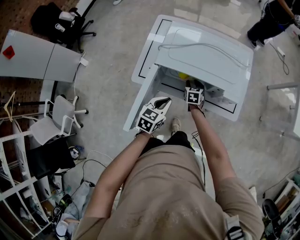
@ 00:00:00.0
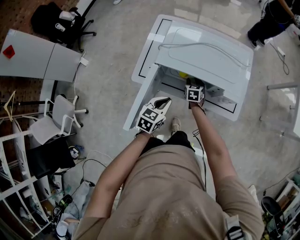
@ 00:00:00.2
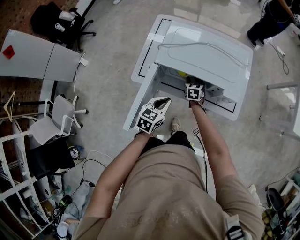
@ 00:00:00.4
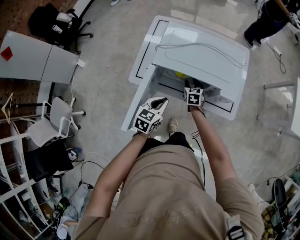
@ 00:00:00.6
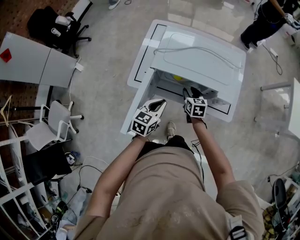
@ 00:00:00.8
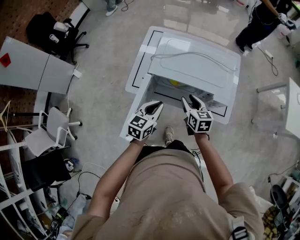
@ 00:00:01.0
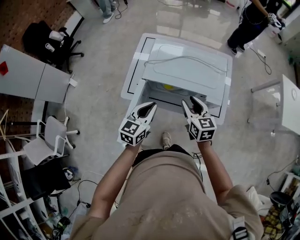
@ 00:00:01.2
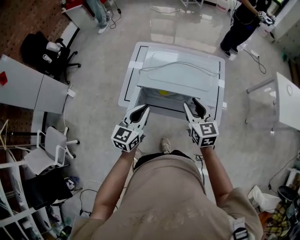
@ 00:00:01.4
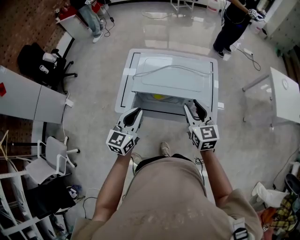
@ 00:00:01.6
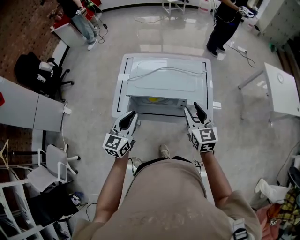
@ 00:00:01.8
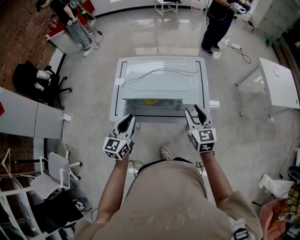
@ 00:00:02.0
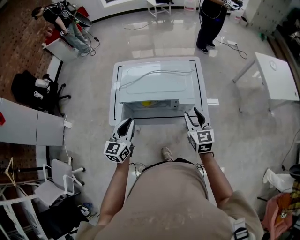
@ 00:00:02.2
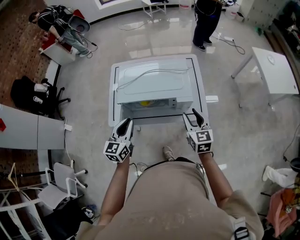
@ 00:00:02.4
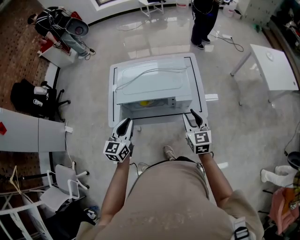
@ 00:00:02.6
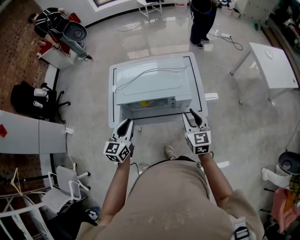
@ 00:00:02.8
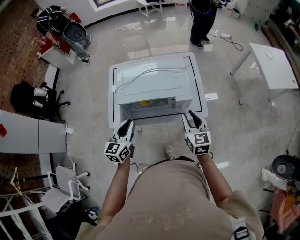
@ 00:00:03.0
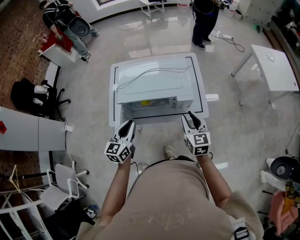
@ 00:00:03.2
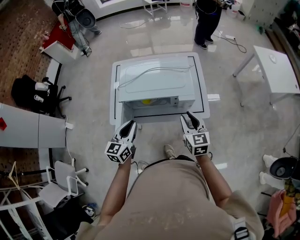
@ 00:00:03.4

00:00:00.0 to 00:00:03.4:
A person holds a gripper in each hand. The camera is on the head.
00:00:00.0 to 00:00:01.6: The left gripper heads upward, covering roughly 20 cm, and swivels about 30 degrees. Meanwhile the right gripper is displaced upward by approximately 35 cm, and turns by approximately 30 degrees.
00:00:01.6 to 00:00:03.4: The right gripper shifts about 10 cm to the right, downward and backward.

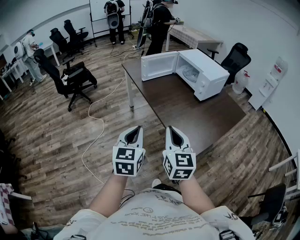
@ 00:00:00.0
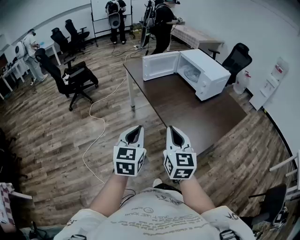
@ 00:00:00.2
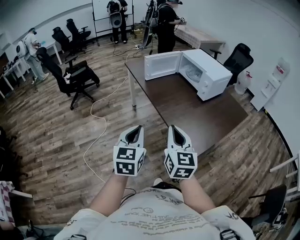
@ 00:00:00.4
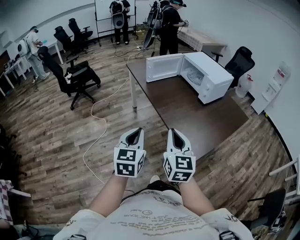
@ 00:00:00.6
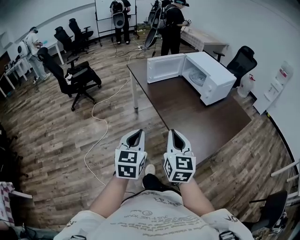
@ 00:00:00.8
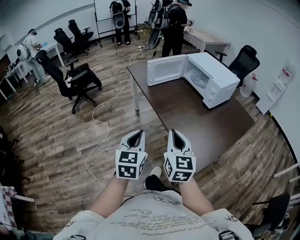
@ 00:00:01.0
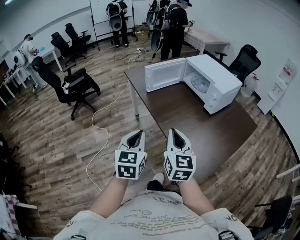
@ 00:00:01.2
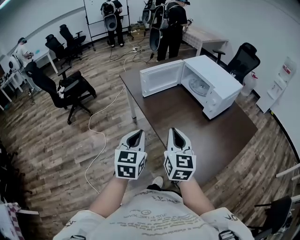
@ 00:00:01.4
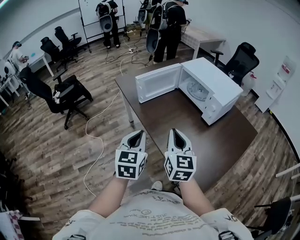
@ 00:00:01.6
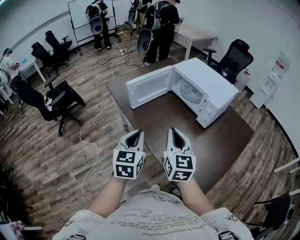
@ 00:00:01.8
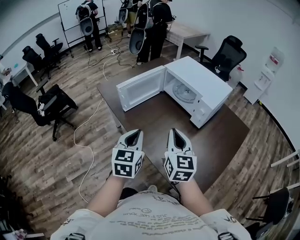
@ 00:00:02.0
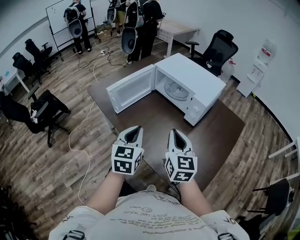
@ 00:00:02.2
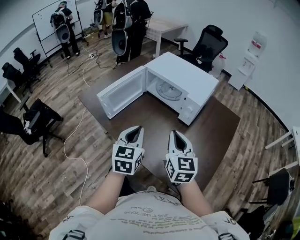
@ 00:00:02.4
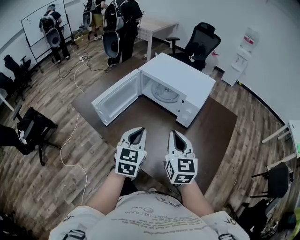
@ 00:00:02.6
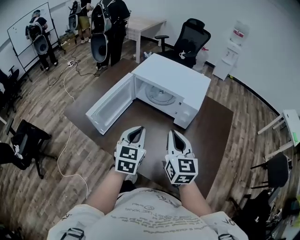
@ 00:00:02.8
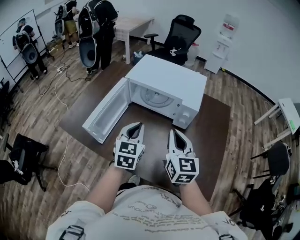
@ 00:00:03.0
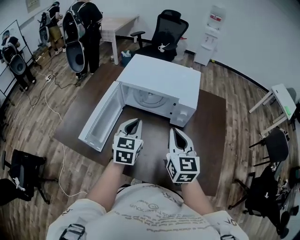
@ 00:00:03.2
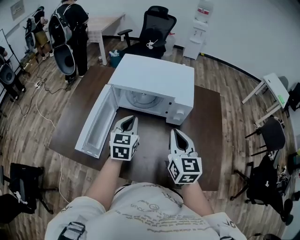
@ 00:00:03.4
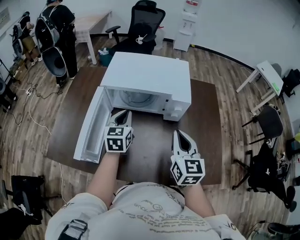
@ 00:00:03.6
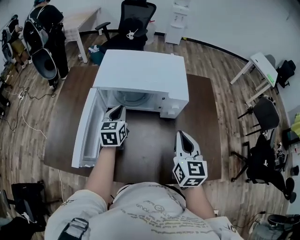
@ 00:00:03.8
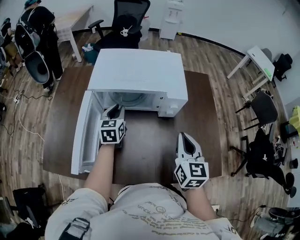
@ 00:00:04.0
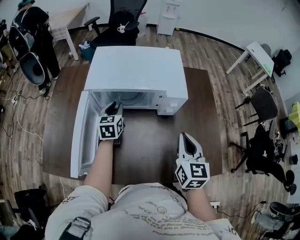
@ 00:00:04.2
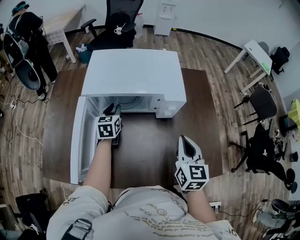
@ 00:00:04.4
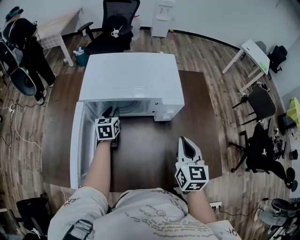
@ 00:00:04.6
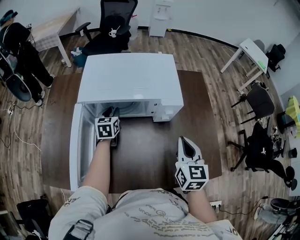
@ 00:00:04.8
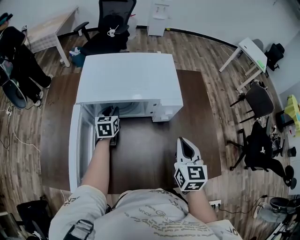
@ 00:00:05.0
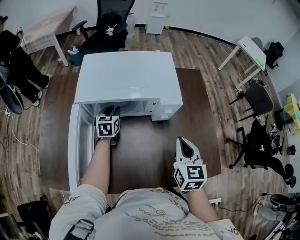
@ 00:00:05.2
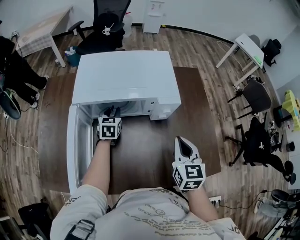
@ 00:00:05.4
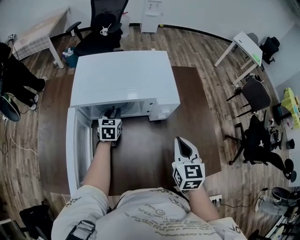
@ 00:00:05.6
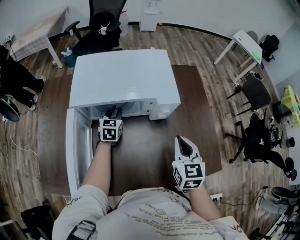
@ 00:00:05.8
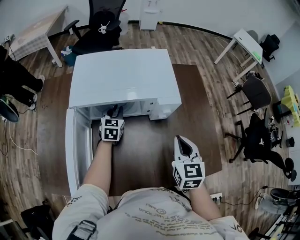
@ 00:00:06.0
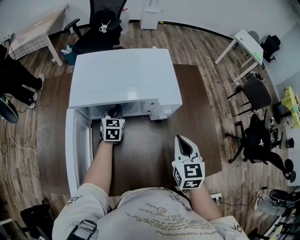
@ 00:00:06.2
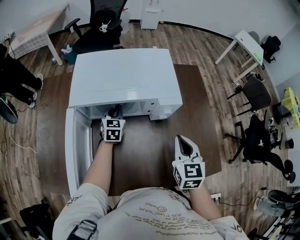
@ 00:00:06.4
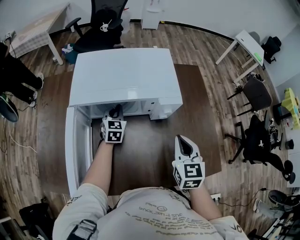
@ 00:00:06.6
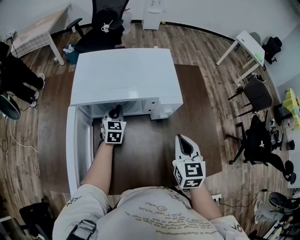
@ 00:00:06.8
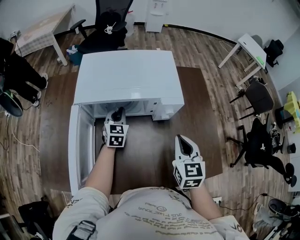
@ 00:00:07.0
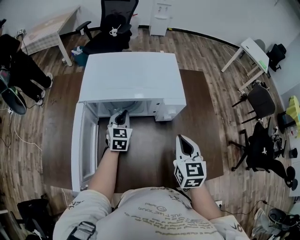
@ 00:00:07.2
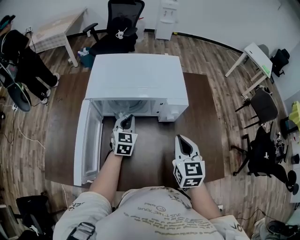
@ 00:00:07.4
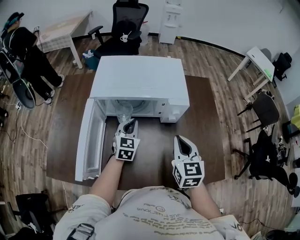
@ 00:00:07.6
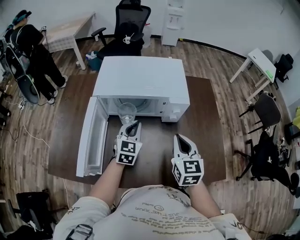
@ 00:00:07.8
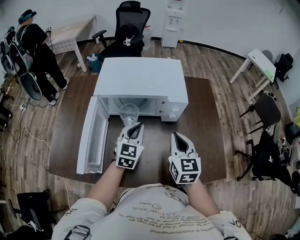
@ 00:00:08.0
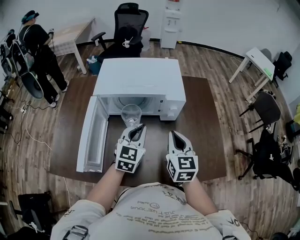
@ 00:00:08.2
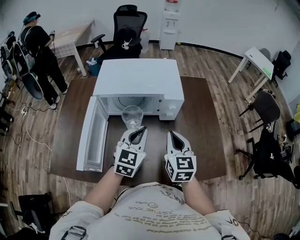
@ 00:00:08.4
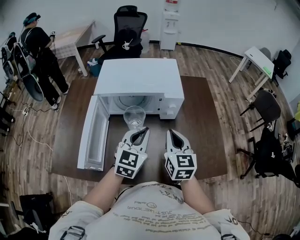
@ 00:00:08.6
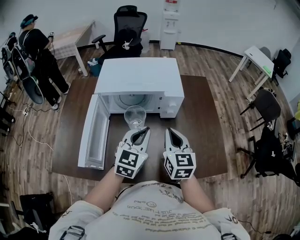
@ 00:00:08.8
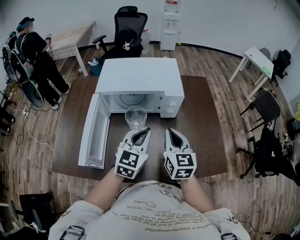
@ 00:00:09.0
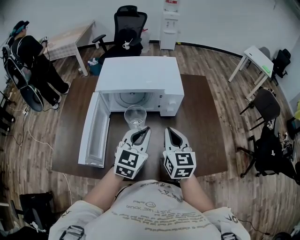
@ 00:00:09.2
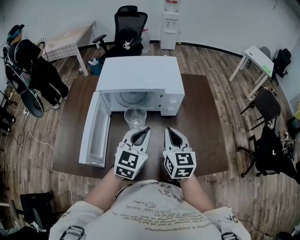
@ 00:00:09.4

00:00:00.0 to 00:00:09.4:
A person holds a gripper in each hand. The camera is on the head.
00:00:00.0 to 00:00:01.6: Both grippers travel together forward, roughly 25 cm.
00:00:01.6 to 00:00:03.2: The left gripper shifts by roughly 35 cm, and turns by approximately 40 degrees. The right gripper ends up approximately 20 cm from where it was, and changes its angle by approximately 40 degrees.
00:00:03.2 to 00:00:04.8: The right gripper moves to the right and downward, roughly 10 cm, and turns by approximately 30 degrees, while the left gripper heads forward and downward, covering approximately 25 cm, and opens its fingers.
00:00:04.8 to 00:00:06.2: The left gripper shifts by about 5 cm, and closes up.
00:00:06.2 to 00:00:07.8: The left gripper goes some 15 cm backward and upward.
00:00:07.8 to 00:00:09.4: The left gripper goes roughly 15 cm backward, upward and to the right.

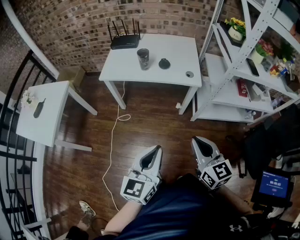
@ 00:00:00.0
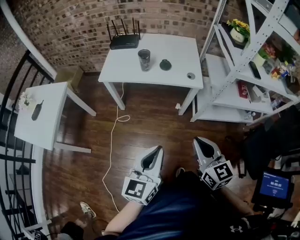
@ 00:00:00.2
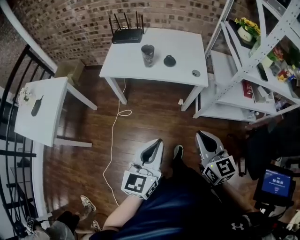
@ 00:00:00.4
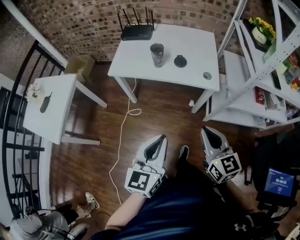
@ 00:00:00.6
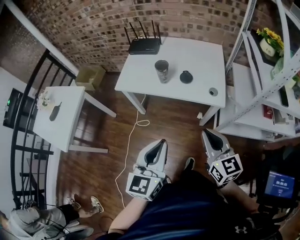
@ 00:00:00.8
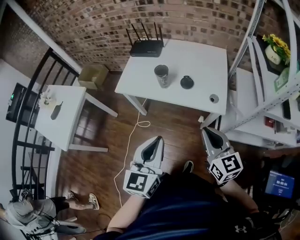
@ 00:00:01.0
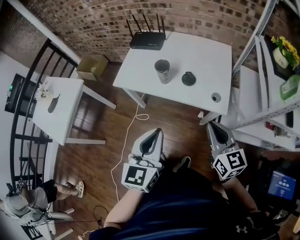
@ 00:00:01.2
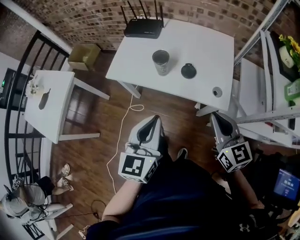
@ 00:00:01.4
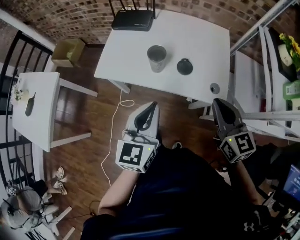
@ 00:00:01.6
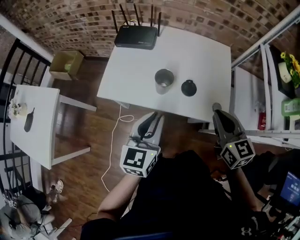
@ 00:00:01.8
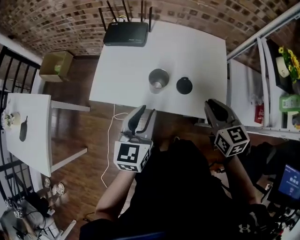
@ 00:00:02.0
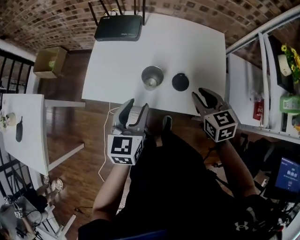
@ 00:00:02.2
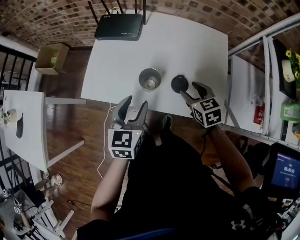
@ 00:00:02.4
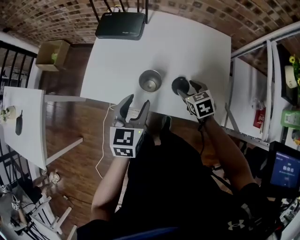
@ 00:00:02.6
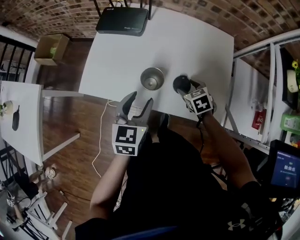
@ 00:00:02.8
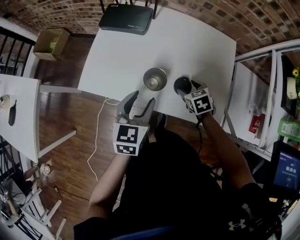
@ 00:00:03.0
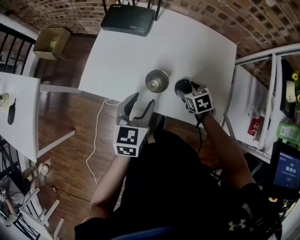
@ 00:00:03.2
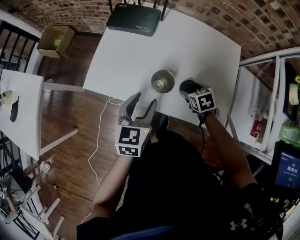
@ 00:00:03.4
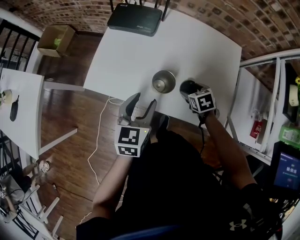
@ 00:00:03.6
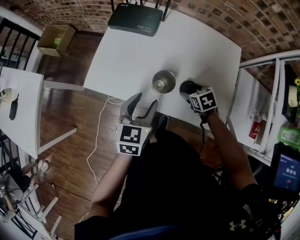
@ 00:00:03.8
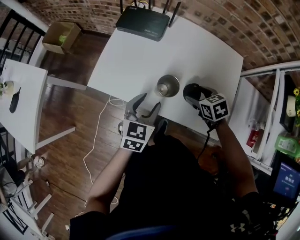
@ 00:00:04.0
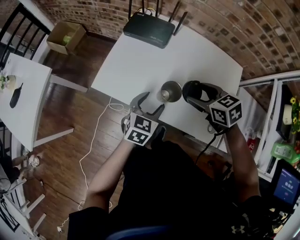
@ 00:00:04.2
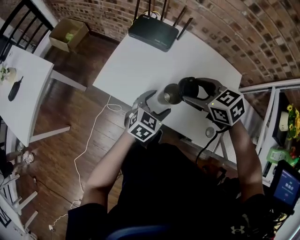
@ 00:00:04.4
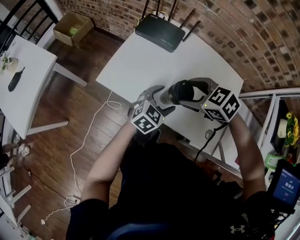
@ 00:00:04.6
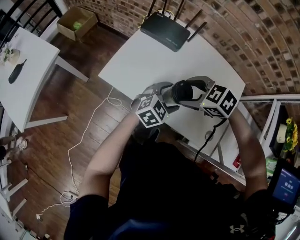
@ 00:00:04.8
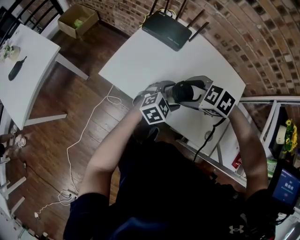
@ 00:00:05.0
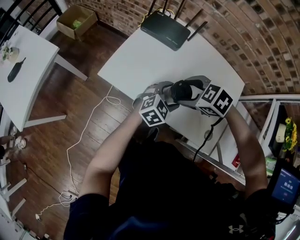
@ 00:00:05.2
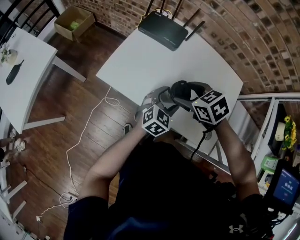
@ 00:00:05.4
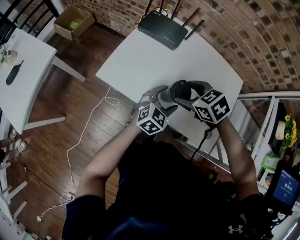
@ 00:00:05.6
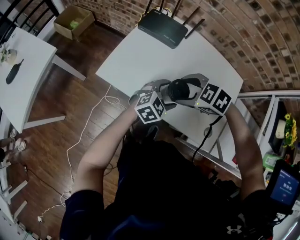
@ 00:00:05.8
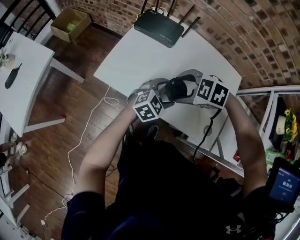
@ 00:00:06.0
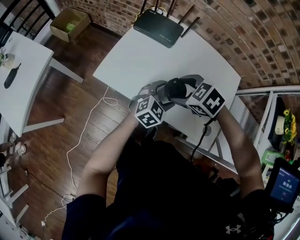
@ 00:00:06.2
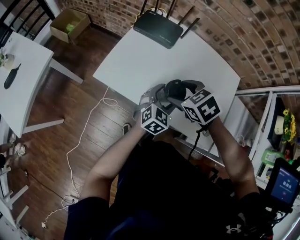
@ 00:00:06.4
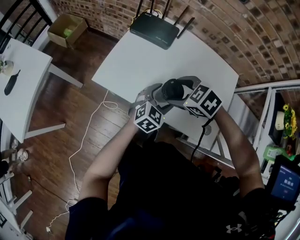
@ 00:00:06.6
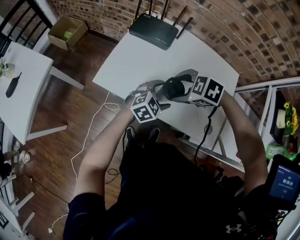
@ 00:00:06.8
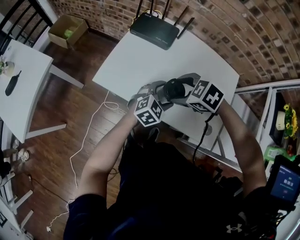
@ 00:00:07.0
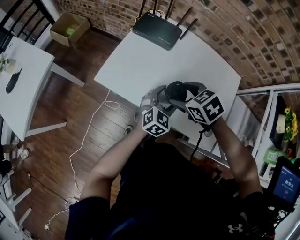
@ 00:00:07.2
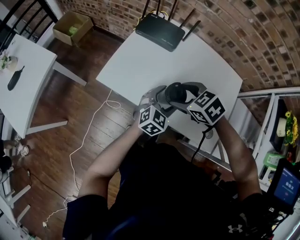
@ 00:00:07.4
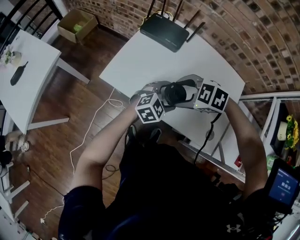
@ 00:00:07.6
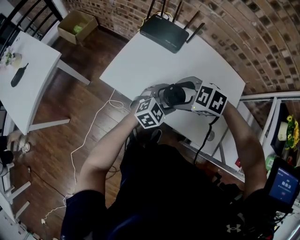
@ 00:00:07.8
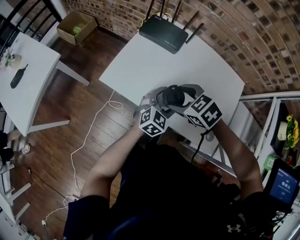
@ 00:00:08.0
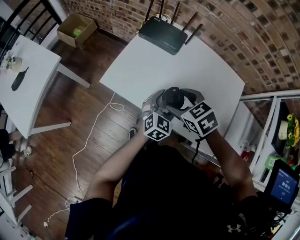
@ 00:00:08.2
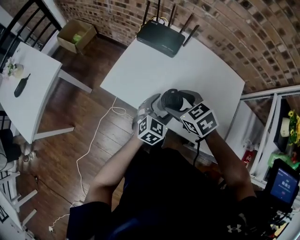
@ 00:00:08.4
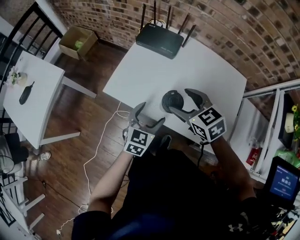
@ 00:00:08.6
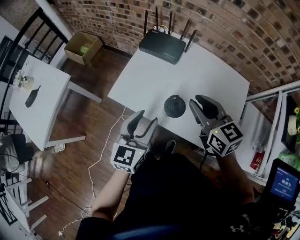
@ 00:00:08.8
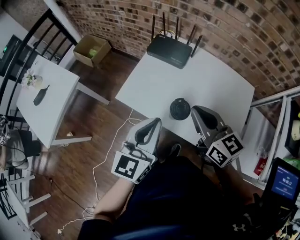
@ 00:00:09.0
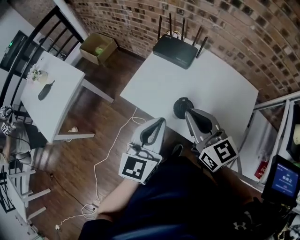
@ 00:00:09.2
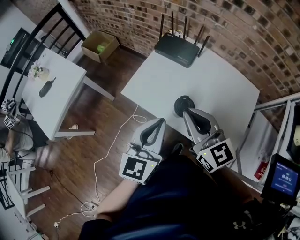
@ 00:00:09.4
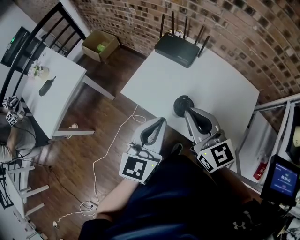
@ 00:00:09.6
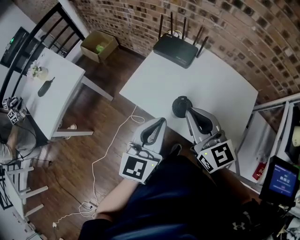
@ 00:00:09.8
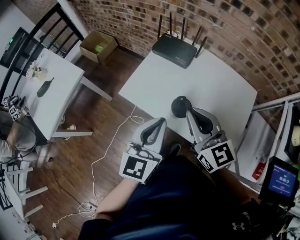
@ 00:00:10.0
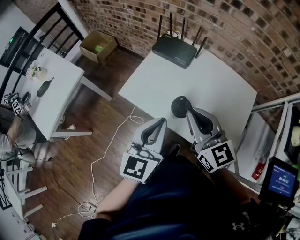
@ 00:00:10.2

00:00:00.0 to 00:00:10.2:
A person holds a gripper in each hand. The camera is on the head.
00:00:00.0 to 00:00:01.4: Both grippers travel together forward, about 35 cm.
00:00:01.4 to 00:00:03.0: The right gripper travels downward and forward by some 40 cm, tilts its fingers approximately 50 degrees downward, and opens up; the left gripper moves forward and downward, about 30 cm, and opens its fingers.
00:00:03.0 to 00:00:04.4: The left gripper changes place by roughly 5 cm, and opens. The right gripper shifts some 25 cm upward and to the left, and changes its angle by about 30 degrees.
00:00:04.4 to 00:00:05.8: The right gripper is displaced downward by roughly 5 cm, and turns by about 30 degrees.
00:00:05.8 to 00:00:07.2: The right gripper rotates some 30 degrees. The left gripper turns by about 20 degrees.
00:00:07.2 to 00:00:08.8: The left gripper changes place by roughly 20 cm, rotates some 30 degrees, and closes up. The right gripper travels upward by approximately 10 cm, angles its fingers upward, by about 40 degrees, and closes up.
00:00:08.8 to 00:00:10.2: The right gripper is displaced to the left by about 5 cm. The left gripper goes approximately 10 cm upward, and closes its fingers.
